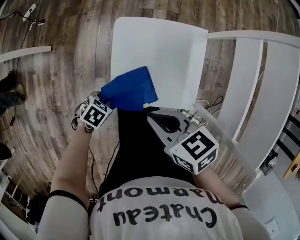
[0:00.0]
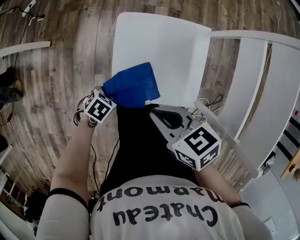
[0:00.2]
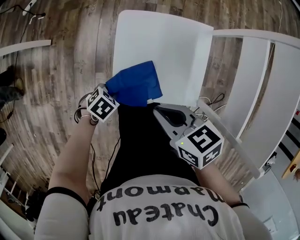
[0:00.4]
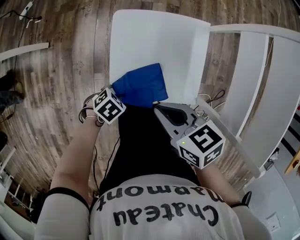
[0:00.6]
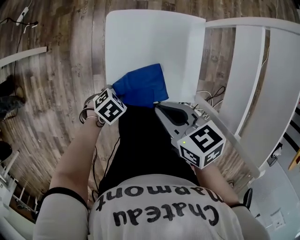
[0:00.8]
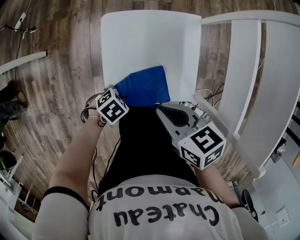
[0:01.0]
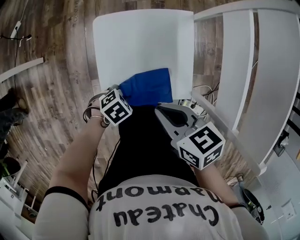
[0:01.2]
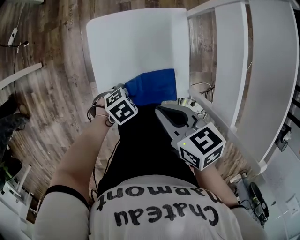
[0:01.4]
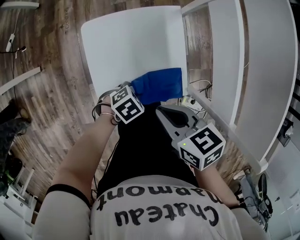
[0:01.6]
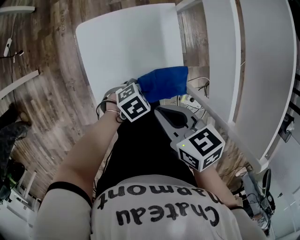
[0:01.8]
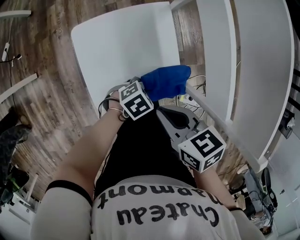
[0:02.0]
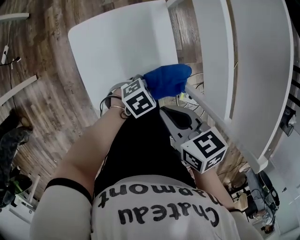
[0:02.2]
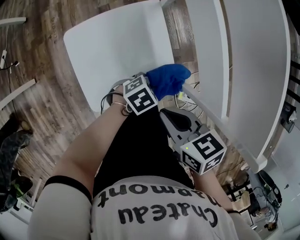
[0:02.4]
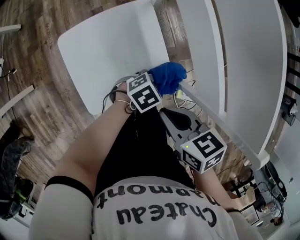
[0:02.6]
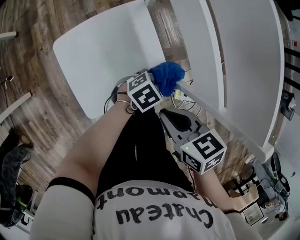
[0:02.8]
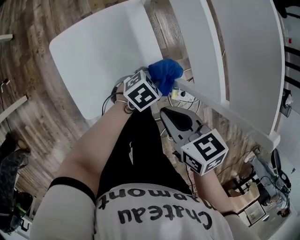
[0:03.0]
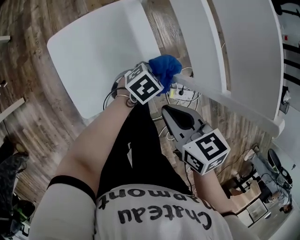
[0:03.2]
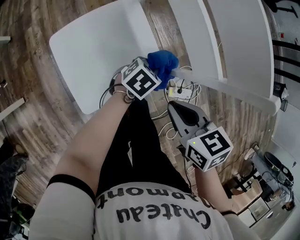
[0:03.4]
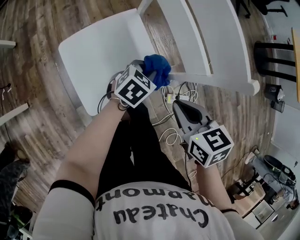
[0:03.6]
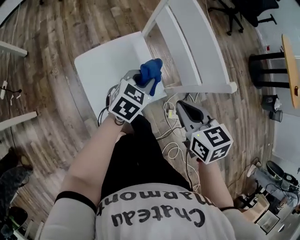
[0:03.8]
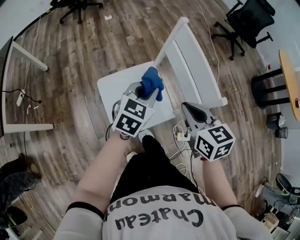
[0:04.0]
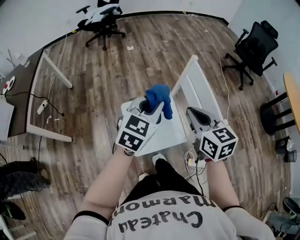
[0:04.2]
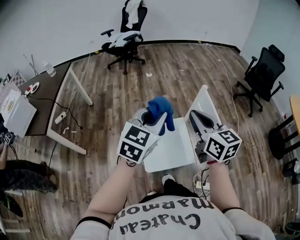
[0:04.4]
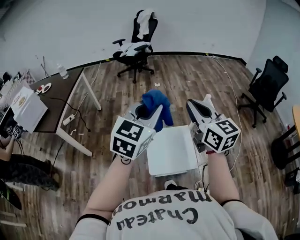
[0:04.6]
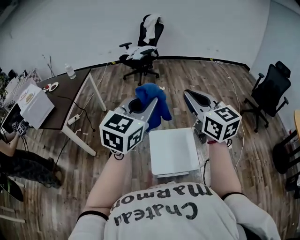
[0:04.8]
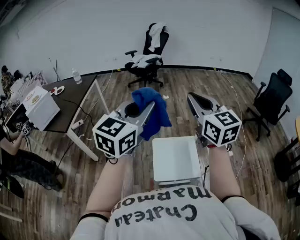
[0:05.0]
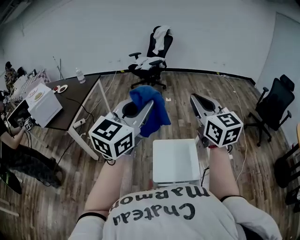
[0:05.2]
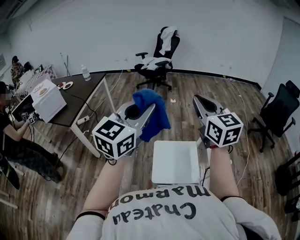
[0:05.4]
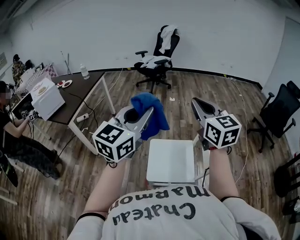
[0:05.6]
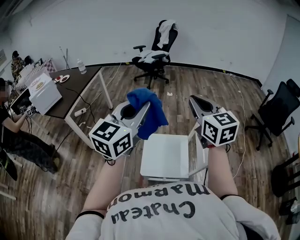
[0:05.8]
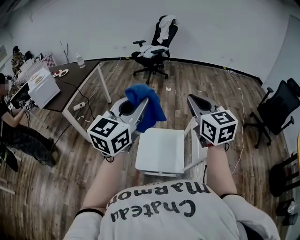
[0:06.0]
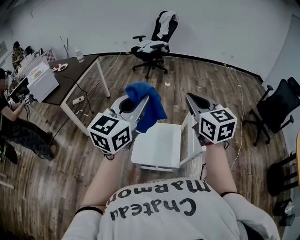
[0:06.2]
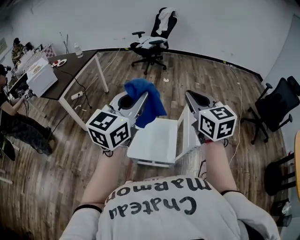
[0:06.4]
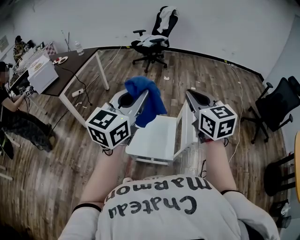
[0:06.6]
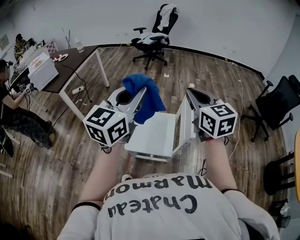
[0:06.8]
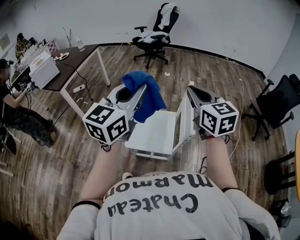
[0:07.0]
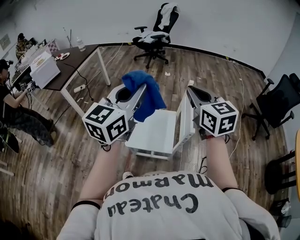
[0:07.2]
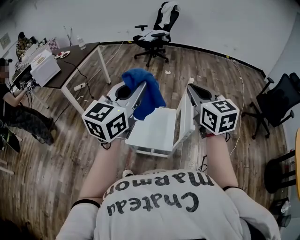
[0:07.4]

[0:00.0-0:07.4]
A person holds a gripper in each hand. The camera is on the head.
0:00.0 to 0:01.4: The right gripper moves approximately 10 cm. The left gripper changes place by approximately 15 cm, and swivels roughly 30 degrees.
0:01.4 to 0:03.0: The right gripper moves some 10 cm, while the left gripper moves approximately 20 cm, and changes its angle by approximately 20 degrees.
0:03.0 to 0:04.4: The two grippers go some 50 cm upward. The right gripper points its fingers roughly 40 degrees further upward. Meanwhile the left gripper tilts its fingers some 40 degrees upward.
0:04.4 to 0:06.0: The left gripper moves upward and backward, some 15 cm, and changes its angle by approximately 30 degrees; the right gripper heads upward, covering roughly 10 cm, and rotates about 20 degrees.
0:06.0 to 0:07.4: Both grippers move to the right and backward, about 10 cm.

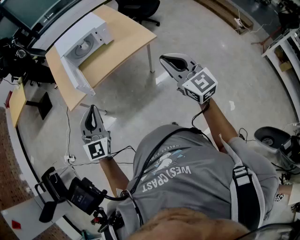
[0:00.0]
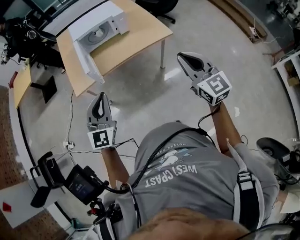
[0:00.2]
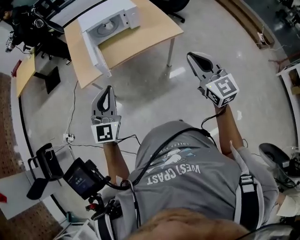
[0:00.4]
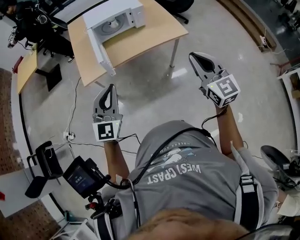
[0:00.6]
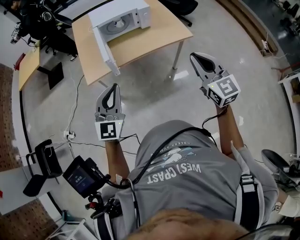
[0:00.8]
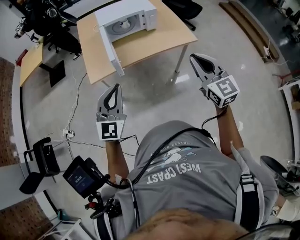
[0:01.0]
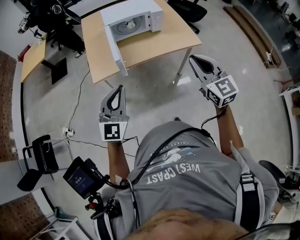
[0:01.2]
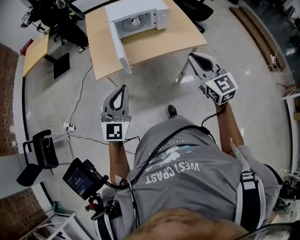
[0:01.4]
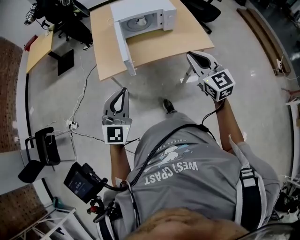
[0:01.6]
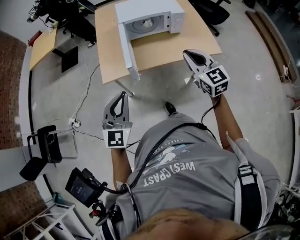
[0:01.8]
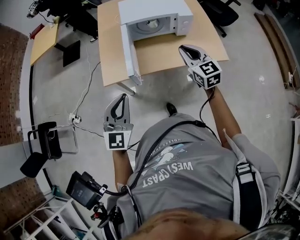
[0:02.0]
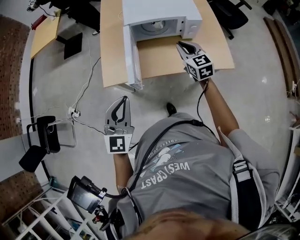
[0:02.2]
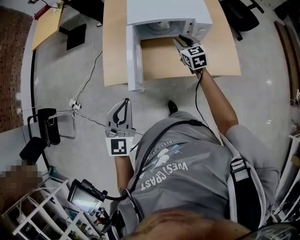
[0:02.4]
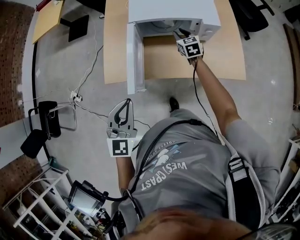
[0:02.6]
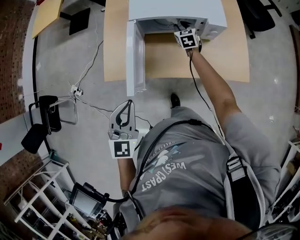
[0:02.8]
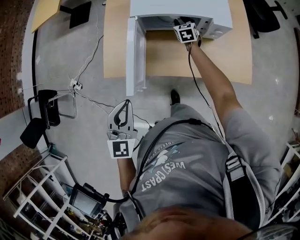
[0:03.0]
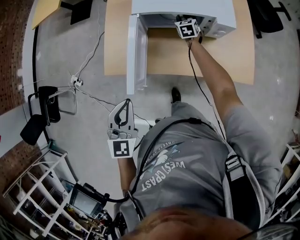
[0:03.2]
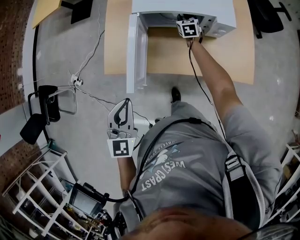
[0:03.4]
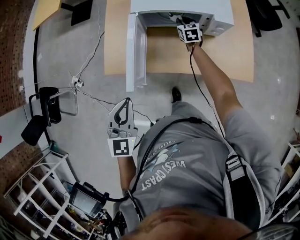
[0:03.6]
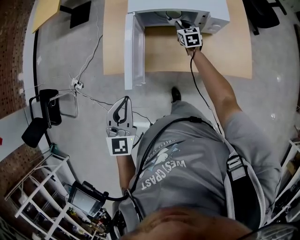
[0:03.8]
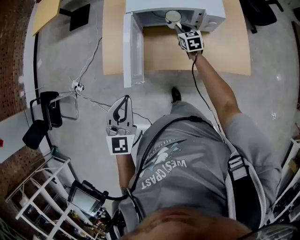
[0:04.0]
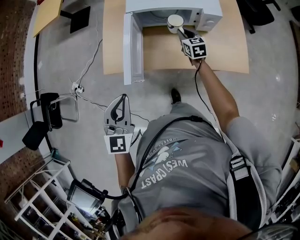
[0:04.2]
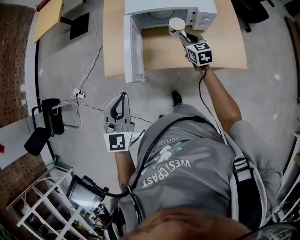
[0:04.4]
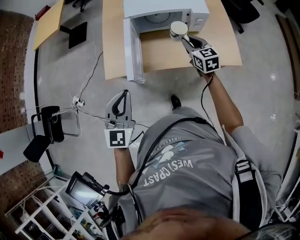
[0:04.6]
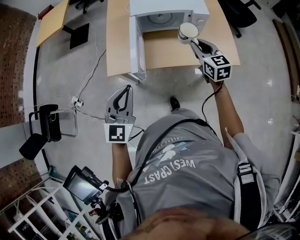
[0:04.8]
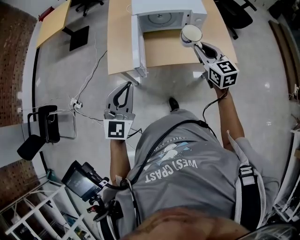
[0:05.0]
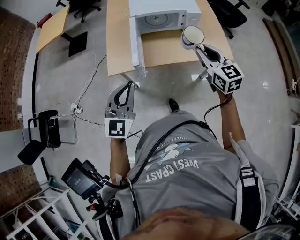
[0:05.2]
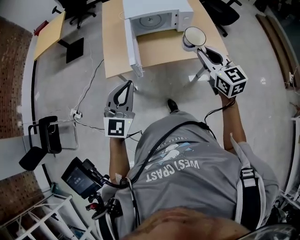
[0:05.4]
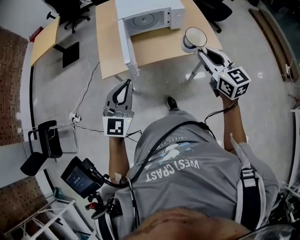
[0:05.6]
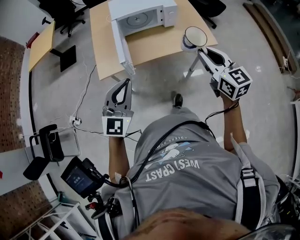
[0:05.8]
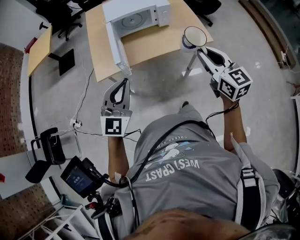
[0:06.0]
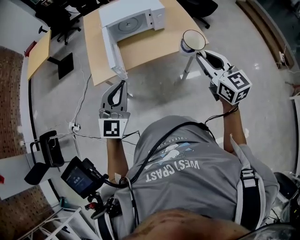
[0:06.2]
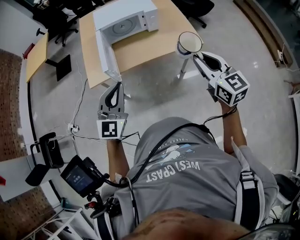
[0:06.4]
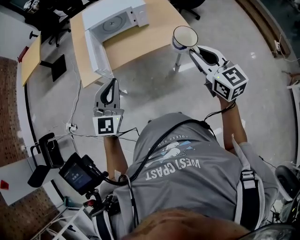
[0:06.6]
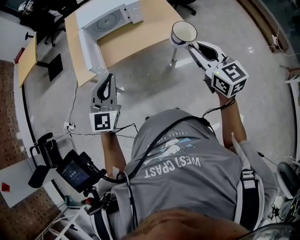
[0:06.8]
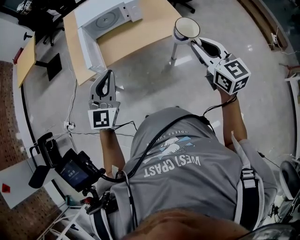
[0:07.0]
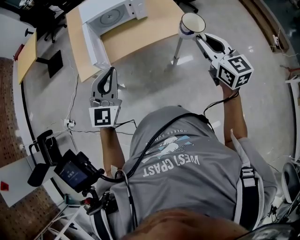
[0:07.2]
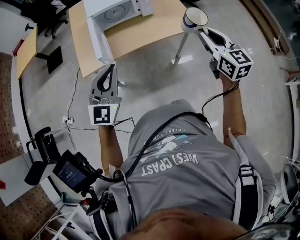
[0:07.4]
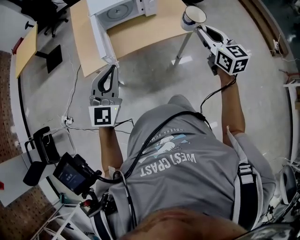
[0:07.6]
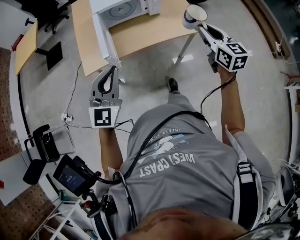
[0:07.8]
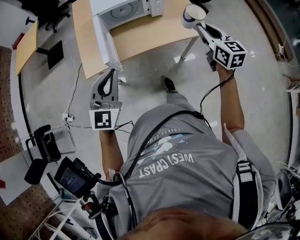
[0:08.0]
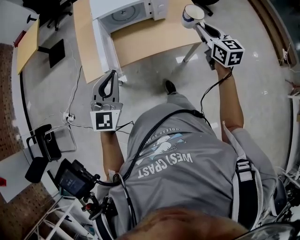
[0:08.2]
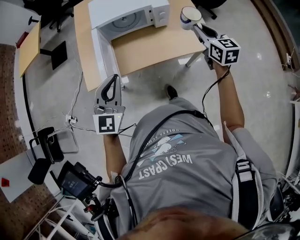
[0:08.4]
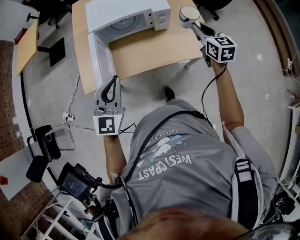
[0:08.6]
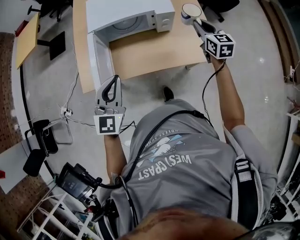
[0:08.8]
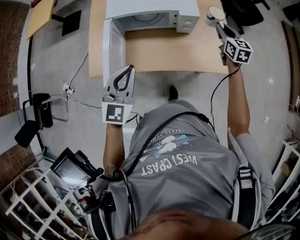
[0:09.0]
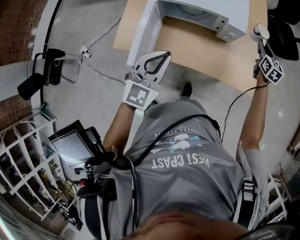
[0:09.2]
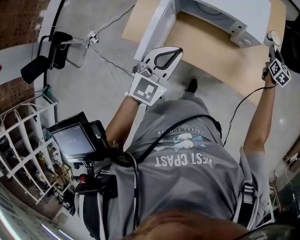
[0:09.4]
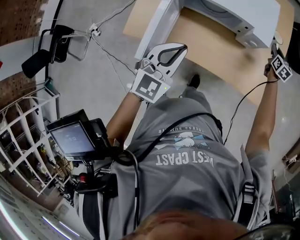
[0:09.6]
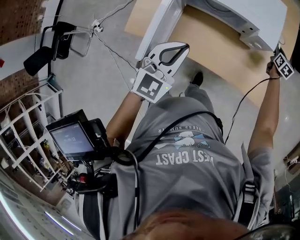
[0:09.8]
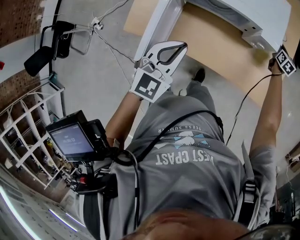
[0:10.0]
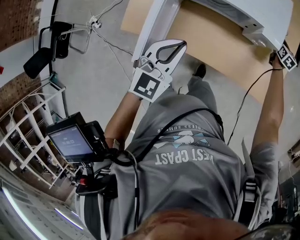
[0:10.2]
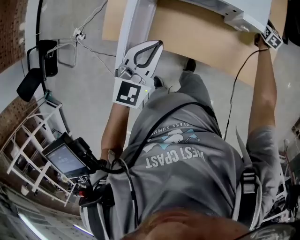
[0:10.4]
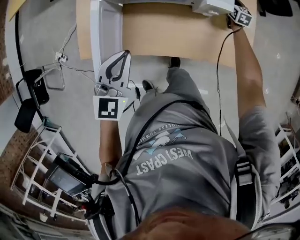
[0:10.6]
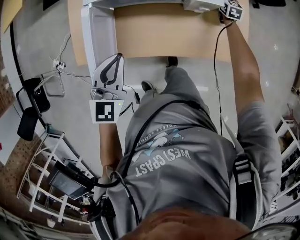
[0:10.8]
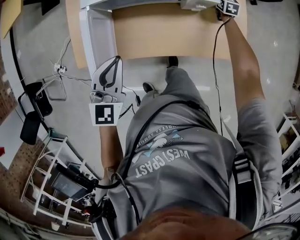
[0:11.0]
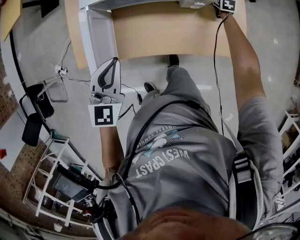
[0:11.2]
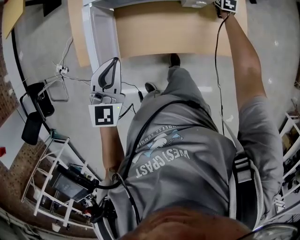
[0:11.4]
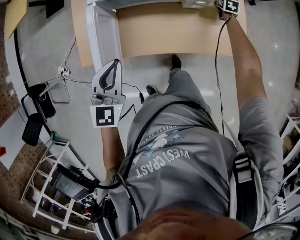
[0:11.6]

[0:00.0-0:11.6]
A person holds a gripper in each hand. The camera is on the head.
0:00.0 to 0:01.4: The left gripper goes about 10 cm to the left, while the right gripper moves to the left and forward, about 20 cm.
0:01.4 to 0:02.8: The left gripper travels forward by about 30 cm, and swivels some 30 degrees; the right gripper is displaced forward and downward by roughly 70 cm, and rotates some 30 degrees.
0:02.8 to 0:04.4: The right gripper travels backward by about 15 cm.
0:04.4 to 0:05.8: The right gripper moves backward and upward, roughly 50 cm. Meanwhile the left gripper shifts approximately 20 cm backward, and swivels about 30 degrees.
0:05.8 to 0:07.2: Both grippers travel together to the right, roughly 10 cm.
0:07.2 to 0:08.8: The left gripper heads forward, covering some 30 cm. Meanwhile the right gripper is displaced forward by roughly 50 cm.
0:08.8 to 0:10.2: The right gripper shifts some 40 cm forward and downward. The left gripper travels forward and downward by roughly 15 cm, and swivels roughly 20 degrees.
0:10.2 to 0:11.6: The right gripper moves some 5 cm; the left gripper changes place by roughly 5 cm.

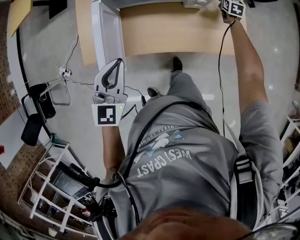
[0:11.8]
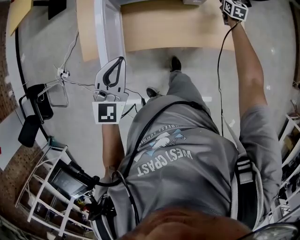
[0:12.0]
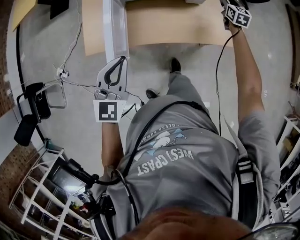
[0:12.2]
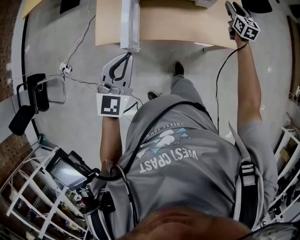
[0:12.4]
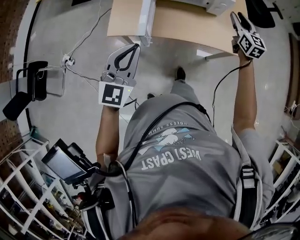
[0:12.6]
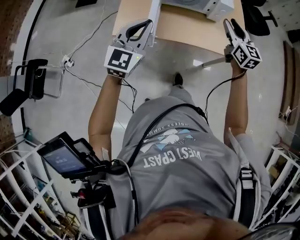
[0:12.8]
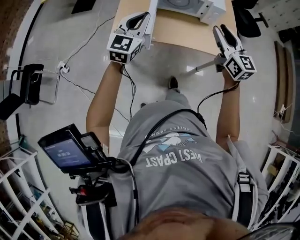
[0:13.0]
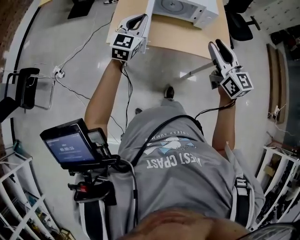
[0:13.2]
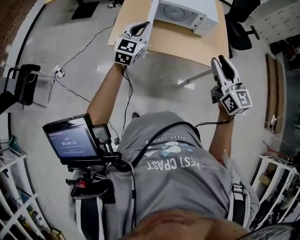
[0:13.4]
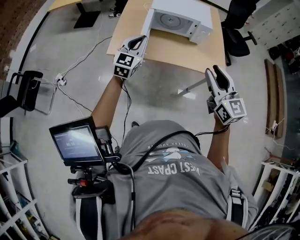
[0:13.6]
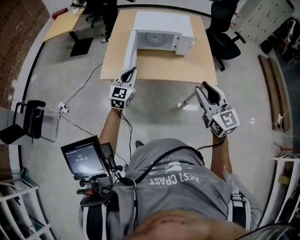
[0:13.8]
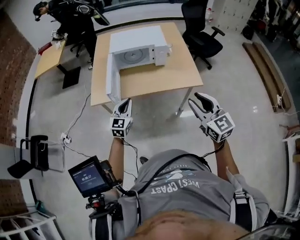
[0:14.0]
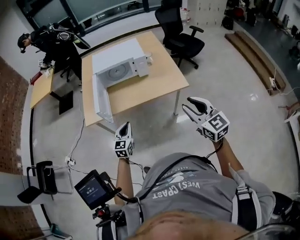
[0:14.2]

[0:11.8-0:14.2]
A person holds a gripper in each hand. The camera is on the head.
0:11.8 to 0:13.0: The right gripper shifts about 70 cm backward, upward and to the left, and tilts its fingers about 30 degrees upward; the left gripper heads backward, to the left and upward, covering about 20 cm.
0:13.0 to 0:14.2: The right gripper travels backward and to the right by approximately 35 cm; the left gripper travels backward, to the right and downward by some 30 cm.

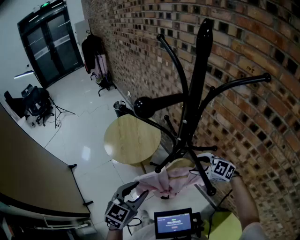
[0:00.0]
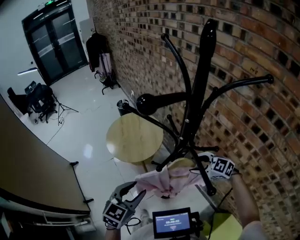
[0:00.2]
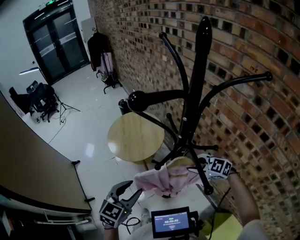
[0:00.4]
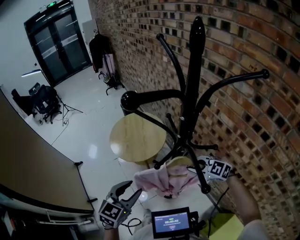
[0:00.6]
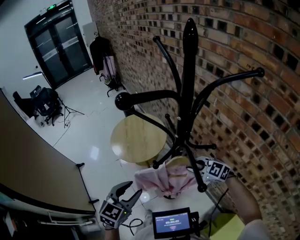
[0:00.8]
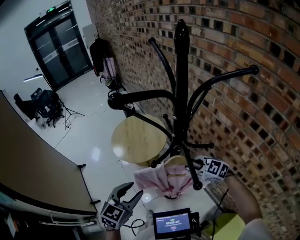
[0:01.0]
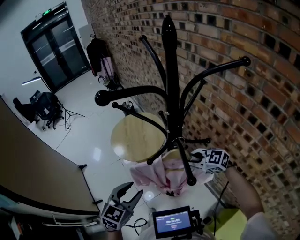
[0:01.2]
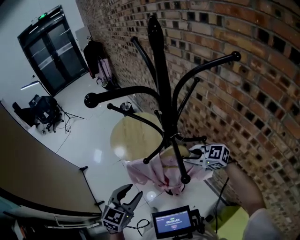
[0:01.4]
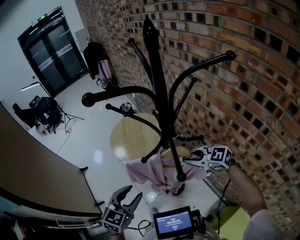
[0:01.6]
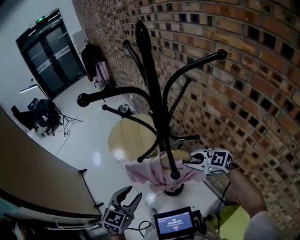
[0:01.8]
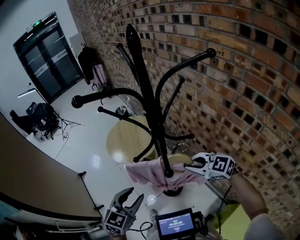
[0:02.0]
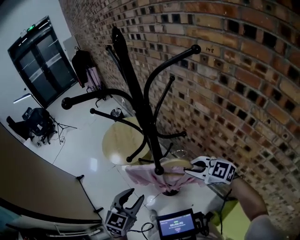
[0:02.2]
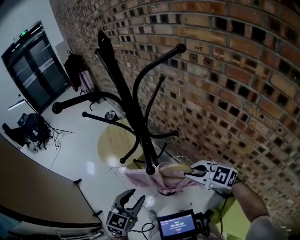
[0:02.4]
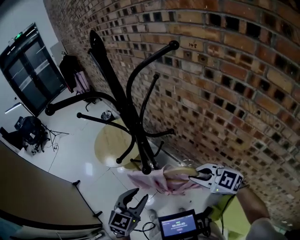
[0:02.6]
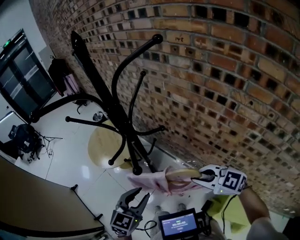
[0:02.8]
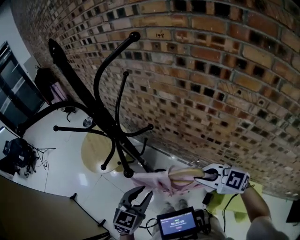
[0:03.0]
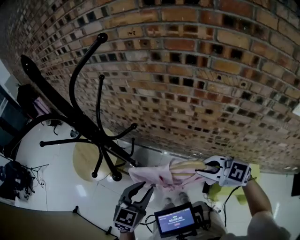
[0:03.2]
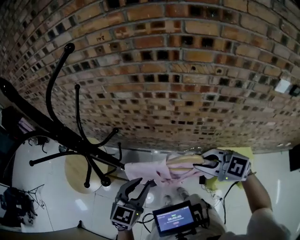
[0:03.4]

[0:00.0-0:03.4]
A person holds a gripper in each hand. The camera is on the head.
0:00.0 to 0:01.6: The right gripper ends up some 5 cm from where it was, and closes. Meanwhile the left gripper is displaced backward by approximately 5 cm.
0:01.6 to 0:03.4: The right gripper changes place by some 30 cm, and swivels about 50 degrees. Meanwhile the left gripper changes place by approximately 20 cm, and turns by some 50 degrees.
